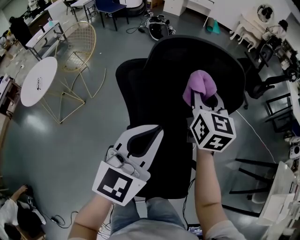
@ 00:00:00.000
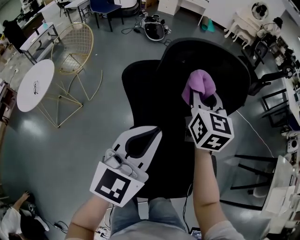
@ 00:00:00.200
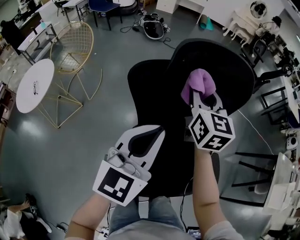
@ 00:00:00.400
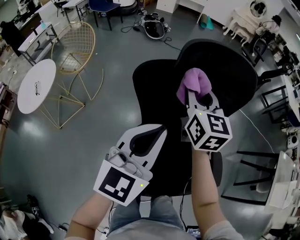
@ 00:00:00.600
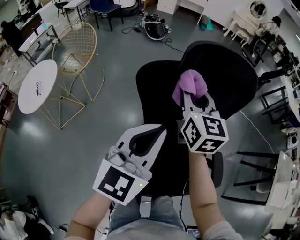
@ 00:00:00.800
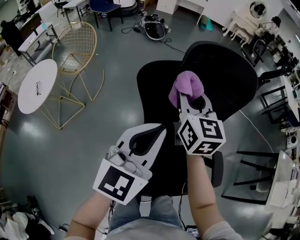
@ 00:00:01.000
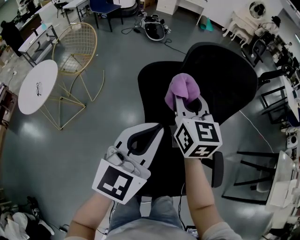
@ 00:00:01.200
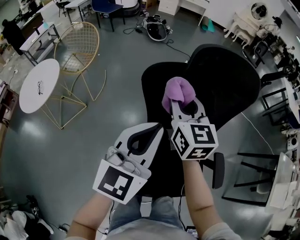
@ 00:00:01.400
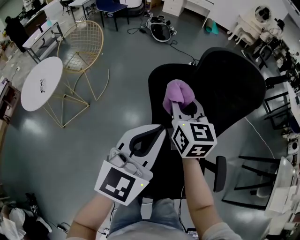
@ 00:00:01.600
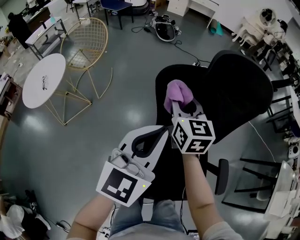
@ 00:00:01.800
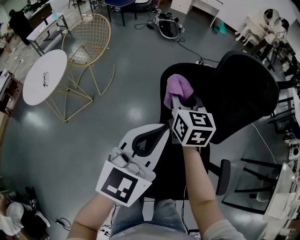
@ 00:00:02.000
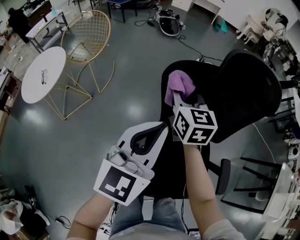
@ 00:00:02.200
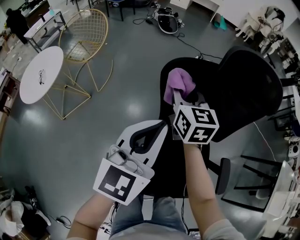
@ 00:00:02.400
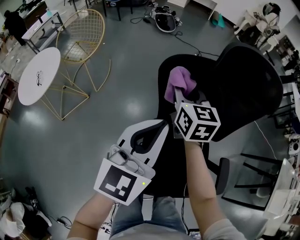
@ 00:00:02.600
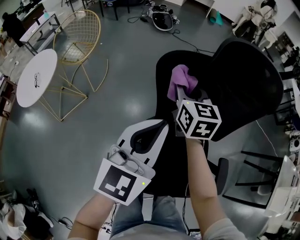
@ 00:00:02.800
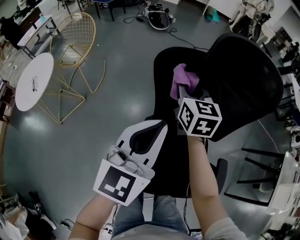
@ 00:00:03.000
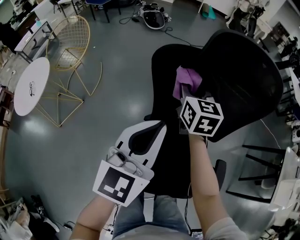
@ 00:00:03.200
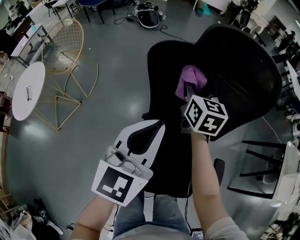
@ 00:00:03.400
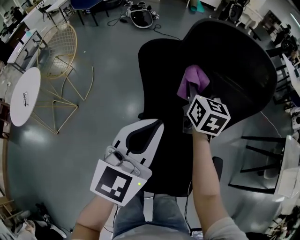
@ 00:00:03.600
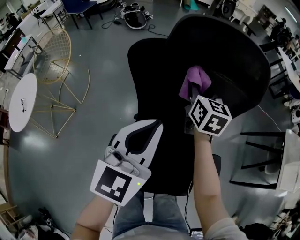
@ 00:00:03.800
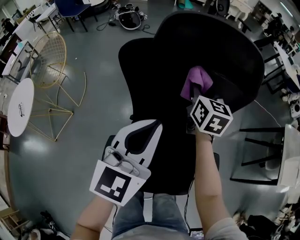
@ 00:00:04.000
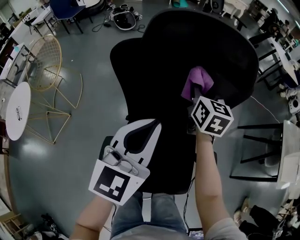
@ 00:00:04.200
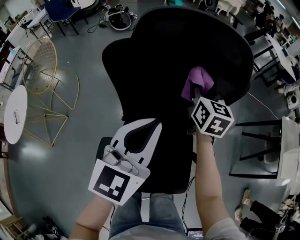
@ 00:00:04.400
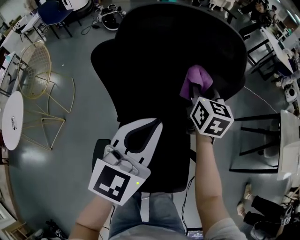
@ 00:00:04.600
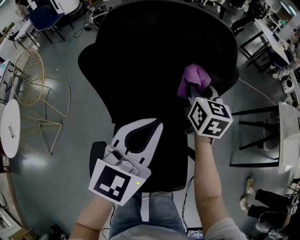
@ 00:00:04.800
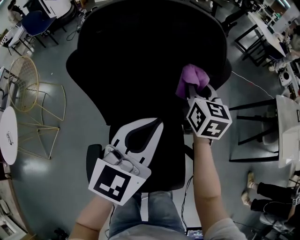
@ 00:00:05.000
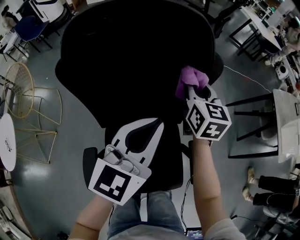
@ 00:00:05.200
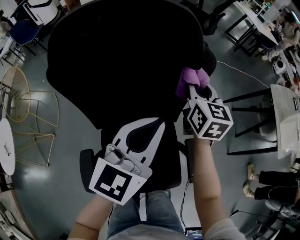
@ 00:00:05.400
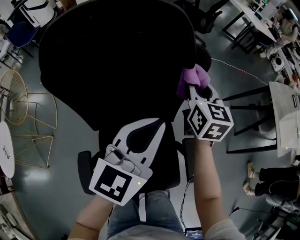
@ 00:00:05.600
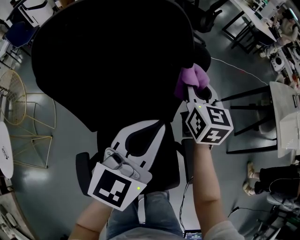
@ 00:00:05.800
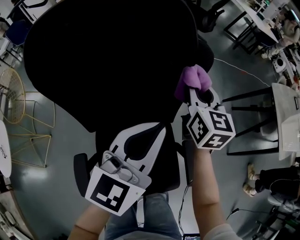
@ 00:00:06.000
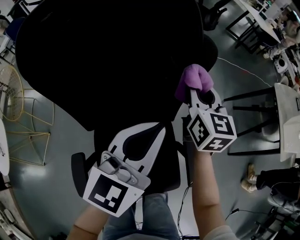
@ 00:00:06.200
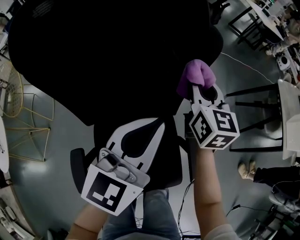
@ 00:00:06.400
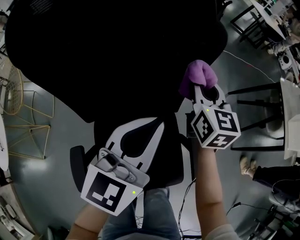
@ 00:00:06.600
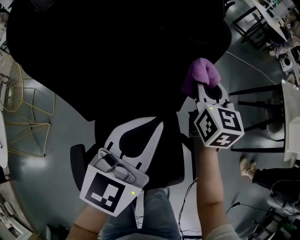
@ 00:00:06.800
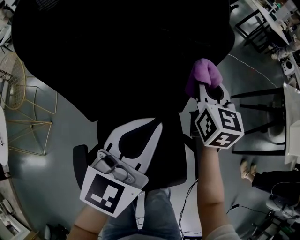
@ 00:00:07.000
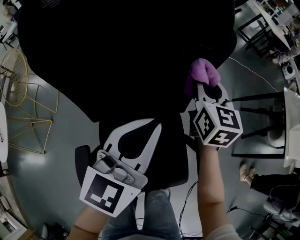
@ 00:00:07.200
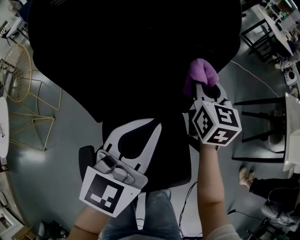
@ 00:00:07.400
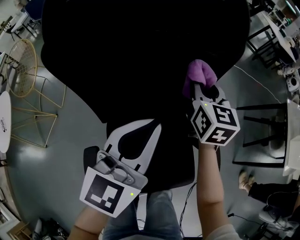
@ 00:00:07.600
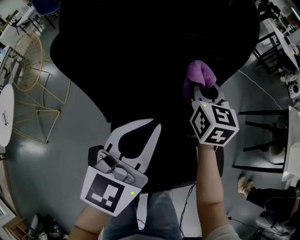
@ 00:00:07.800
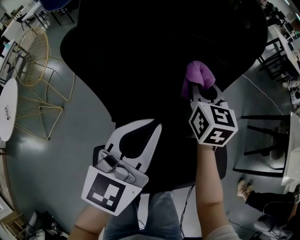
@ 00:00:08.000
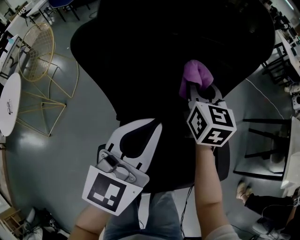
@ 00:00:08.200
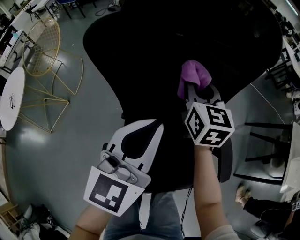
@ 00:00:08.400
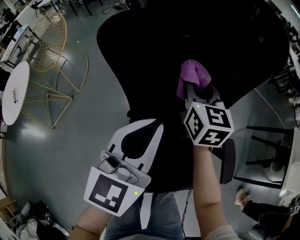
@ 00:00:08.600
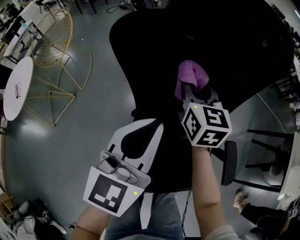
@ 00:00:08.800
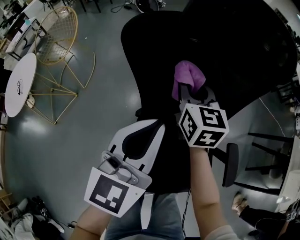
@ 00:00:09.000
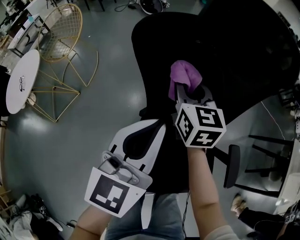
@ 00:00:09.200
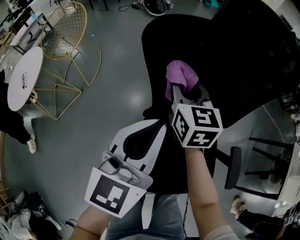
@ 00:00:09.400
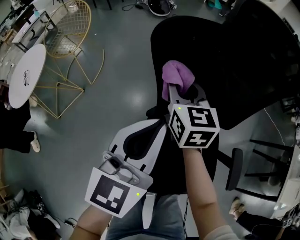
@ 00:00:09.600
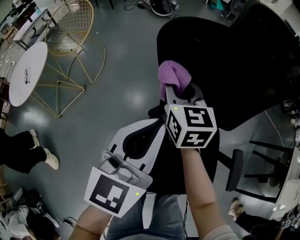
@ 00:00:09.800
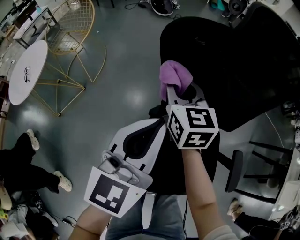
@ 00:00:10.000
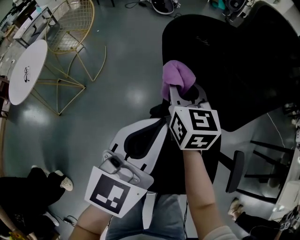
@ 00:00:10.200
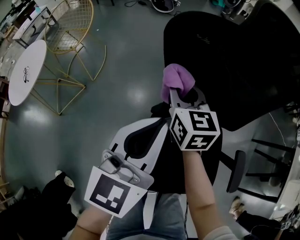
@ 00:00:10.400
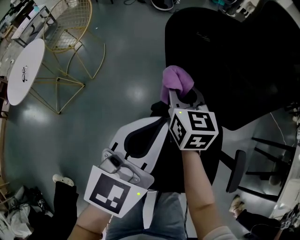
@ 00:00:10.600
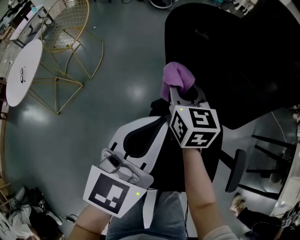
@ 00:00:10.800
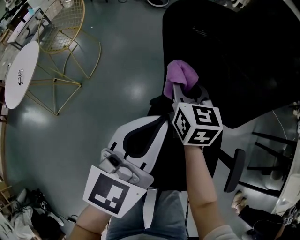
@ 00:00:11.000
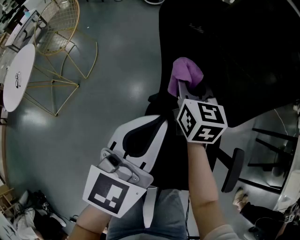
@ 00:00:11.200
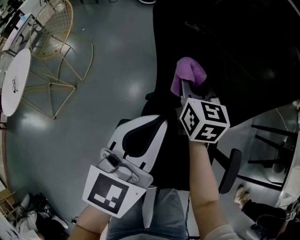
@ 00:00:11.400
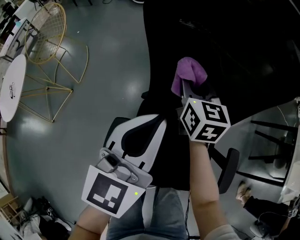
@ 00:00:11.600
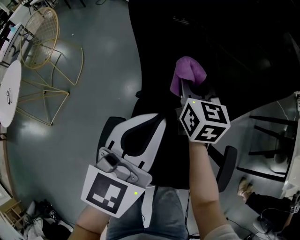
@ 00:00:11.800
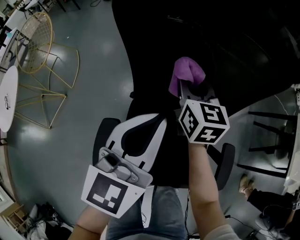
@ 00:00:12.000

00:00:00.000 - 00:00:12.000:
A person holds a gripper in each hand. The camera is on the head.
00:00:00.000 - 00:00:01.600: Both grippers move to the left, about 15 cm.
00:00:01.600 - 00:00:03.000: The left gripper moves approximately 5 cm. Meanwhile the right gripper shifts roughly 10 cm forward and downward.
00:00:03.000 - 00:00:04.400: The left gripper moves to the right, approximately 15 cm. The right gripper travels to the right by some 25 cm, and rotates about 20 degrees.
00:00:04.400 - 00:00:06.000: The left gripper shifts roughly 15 cm to the right and forward, while the right gripper is displaced to the right by roughly 15 cm.
00:00:06.000 - 00:00:07.600: Both grippers move to the left, about 10 cm.
00:00:07.600 - 00:00:09.000: The left gripper heads to the left, covering some 15 cm. The right gripper goes approximately 25 cm to the left.
00:00:09.000 - 00:00:10.400: The right gripper heads to the left, covering roughly 10 cm; the left gripper goes roughly 5 cm to the left.
00:00:10.400 - 00:00:12.000: The two grippers go roughly 15 cm to the right.

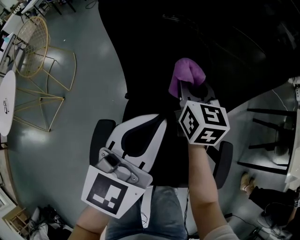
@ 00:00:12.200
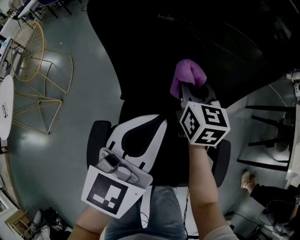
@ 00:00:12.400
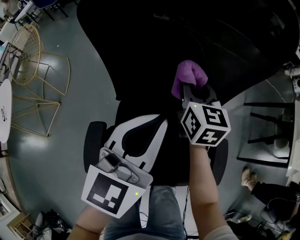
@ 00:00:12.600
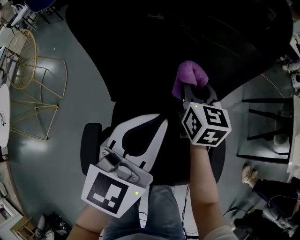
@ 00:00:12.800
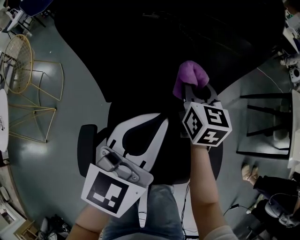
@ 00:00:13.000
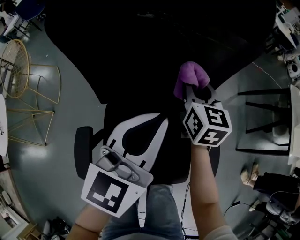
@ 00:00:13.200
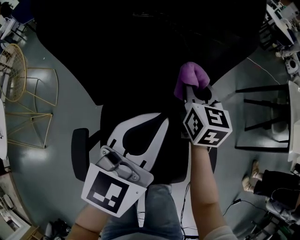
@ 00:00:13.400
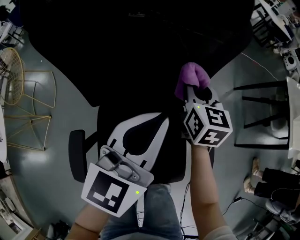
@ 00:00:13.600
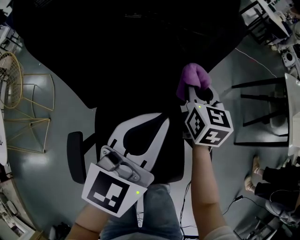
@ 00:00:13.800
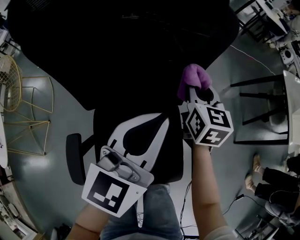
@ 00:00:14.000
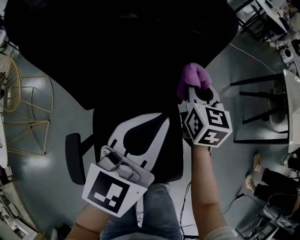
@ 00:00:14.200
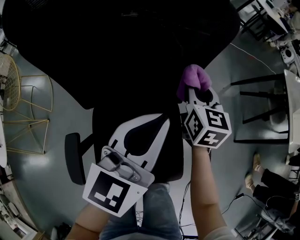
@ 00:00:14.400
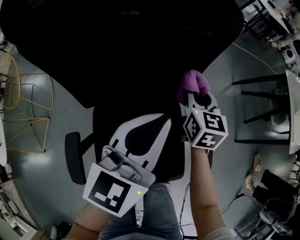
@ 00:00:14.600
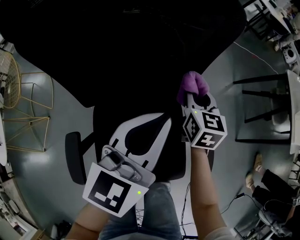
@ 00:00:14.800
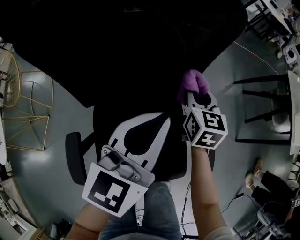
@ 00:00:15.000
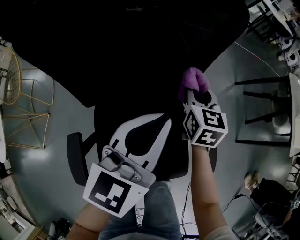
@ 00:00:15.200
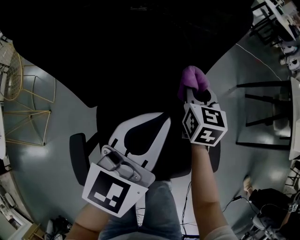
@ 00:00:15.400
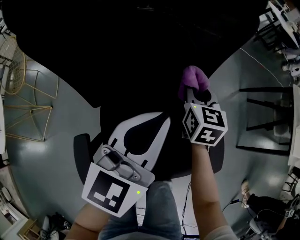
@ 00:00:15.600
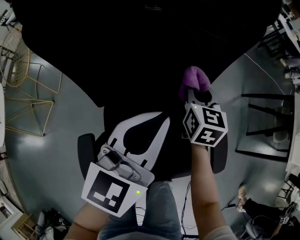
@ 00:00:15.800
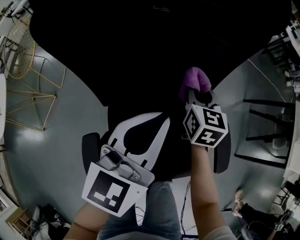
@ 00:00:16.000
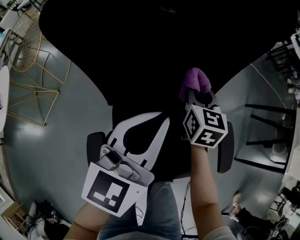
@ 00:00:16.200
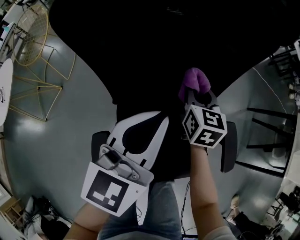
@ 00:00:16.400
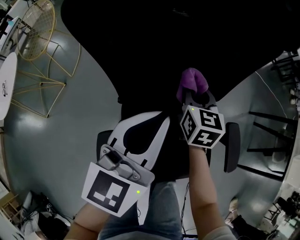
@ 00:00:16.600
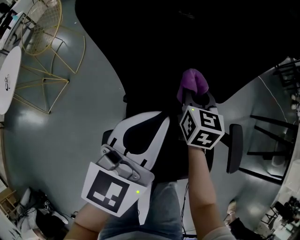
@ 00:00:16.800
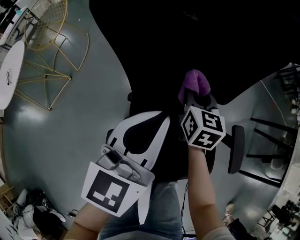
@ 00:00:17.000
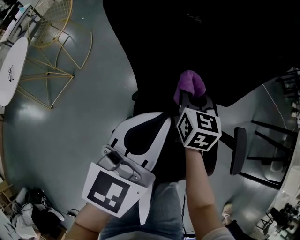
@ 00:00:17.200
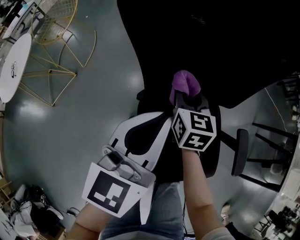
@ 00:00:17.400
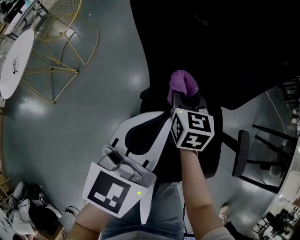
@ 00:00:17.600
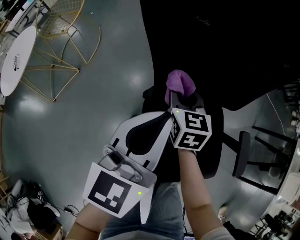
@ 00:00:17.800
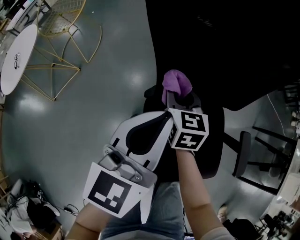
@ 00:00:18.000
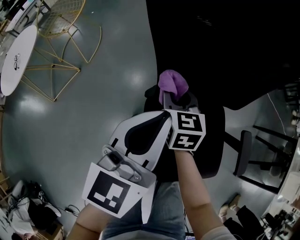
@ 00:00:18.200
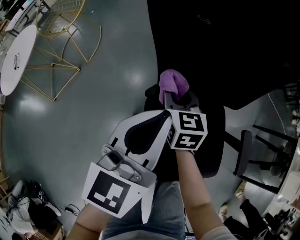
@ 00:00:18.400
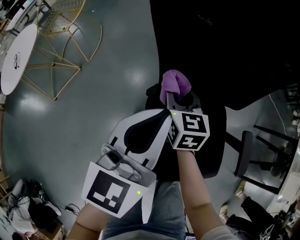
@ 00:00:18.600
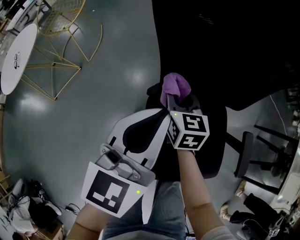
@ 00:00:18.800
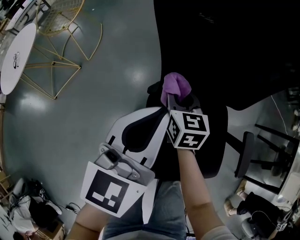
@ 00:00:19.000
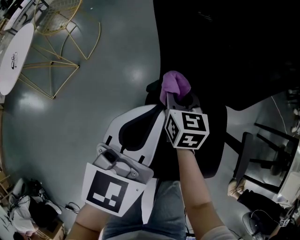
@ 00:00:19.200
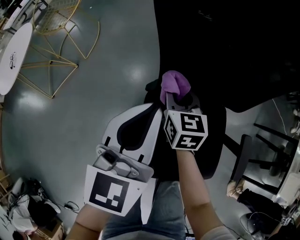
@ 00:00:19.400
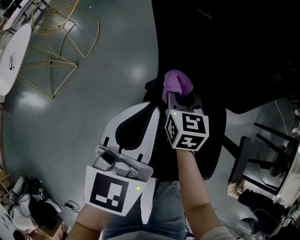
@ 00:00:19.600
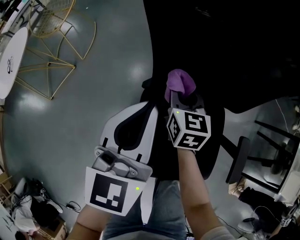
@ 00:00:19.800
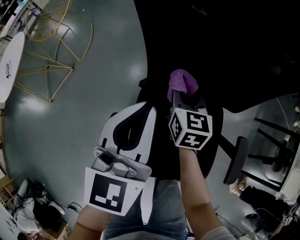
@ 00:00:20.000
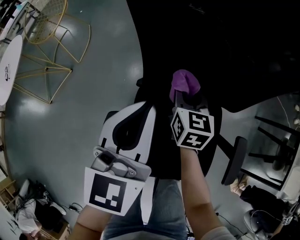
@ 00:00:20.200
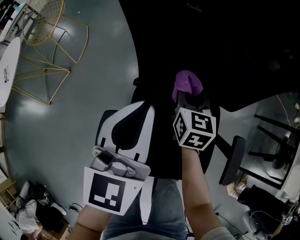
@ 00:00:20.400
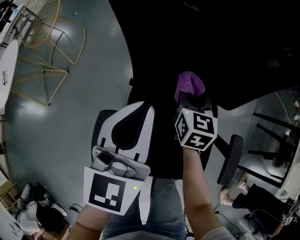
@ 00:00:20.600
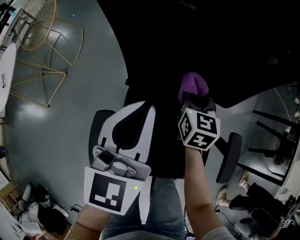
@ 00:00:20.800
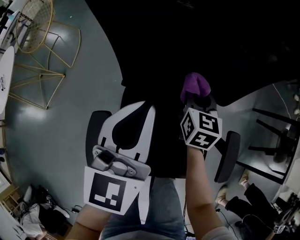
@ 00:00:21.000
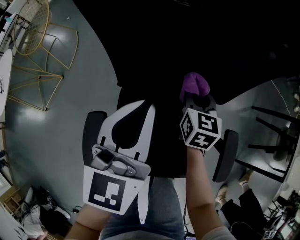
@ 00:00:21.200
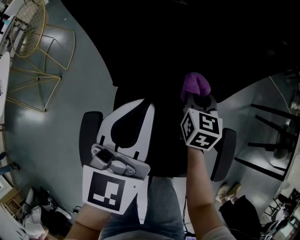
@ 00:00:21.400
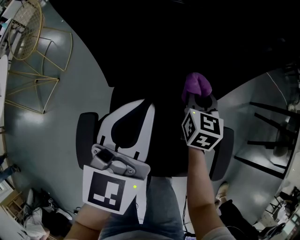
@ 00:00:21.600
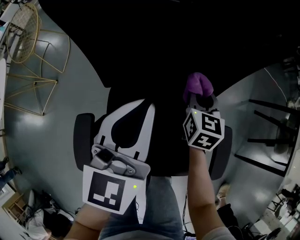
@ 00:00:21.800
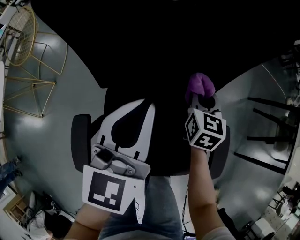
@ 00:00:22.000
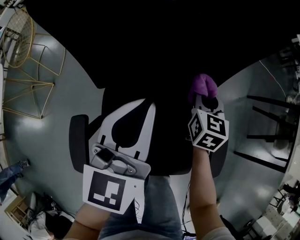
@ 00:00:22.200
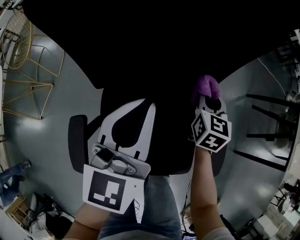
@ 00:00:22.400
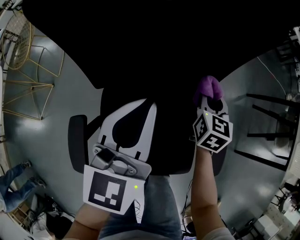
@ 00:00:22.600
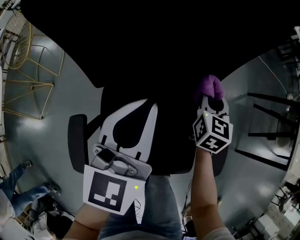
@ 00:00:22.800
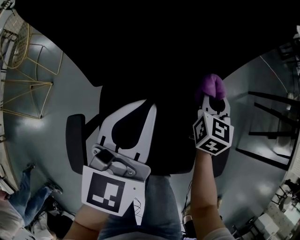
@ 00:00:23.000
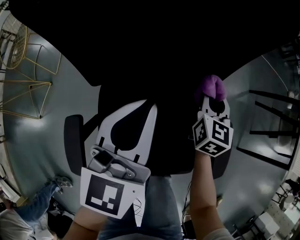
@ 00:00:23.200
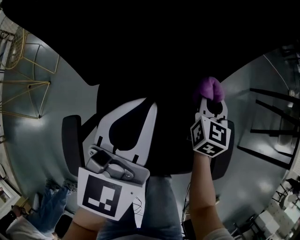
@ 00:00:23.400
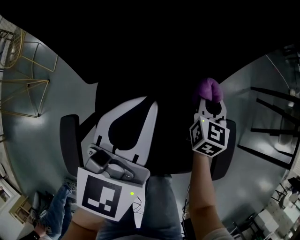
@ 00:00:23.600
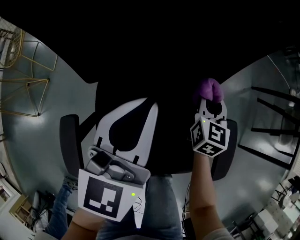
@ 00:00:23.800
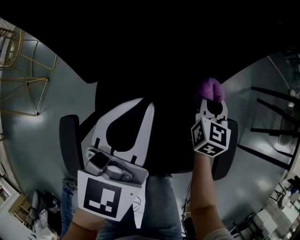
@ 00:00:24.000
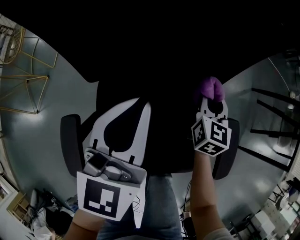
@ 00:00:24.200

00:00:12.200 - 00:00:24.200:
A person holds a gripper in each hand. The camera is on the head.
00:00:12.200 - 00:00:13.800: The grippers both shift to the right by approximately 15 cm.
00:00:13.800 - 00:00:15.200: The grippers move only a little.
00:00:15.200 - 00:00:16.600: The grippers both shift to the left by approximately 20 cm.
00:00:16.600 - 00:00:18.200: The left gripper travels to the left by roughly 10 cm, while the right gripper heads to the left, covering roughly 20 cm.
00:00:18.200 - 00:00:19.800: The right gripper is displaced to the right by roughly 5 cm.
00:00:19.800 - 00:00:21.200: The right gripper heads to the right, covering about 20 cm. Meanwhile the left gripper shifts roughly 10 cm to the right.
00:00:21.200 - 00:00:22.600: The left gripper moves to the right, some 5 cm, while the right gripper moves to the right, roughly 15 cm.
00:00:22.600 - 00:00:24.200: The right gripper changes place by some 5 cm.
